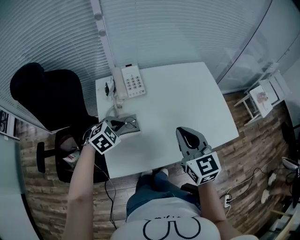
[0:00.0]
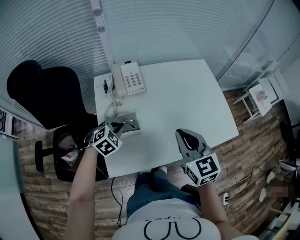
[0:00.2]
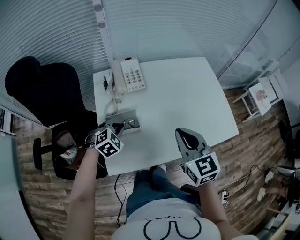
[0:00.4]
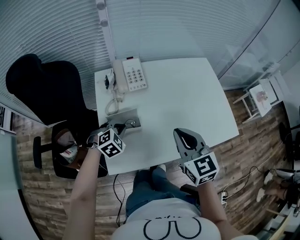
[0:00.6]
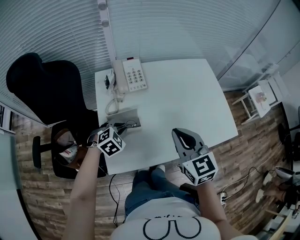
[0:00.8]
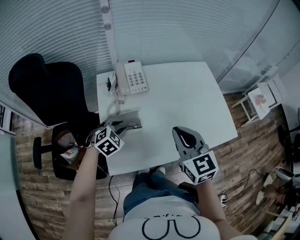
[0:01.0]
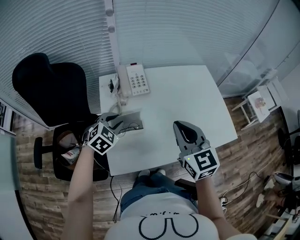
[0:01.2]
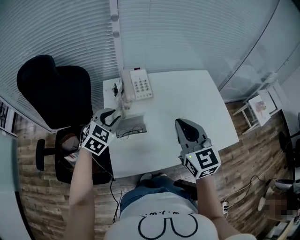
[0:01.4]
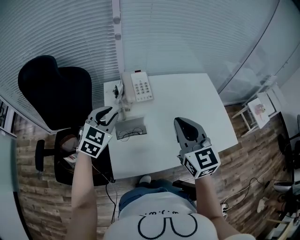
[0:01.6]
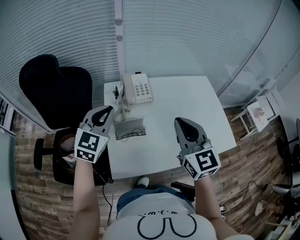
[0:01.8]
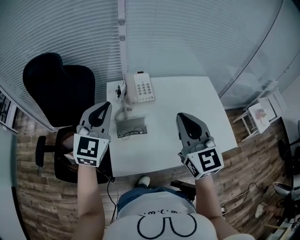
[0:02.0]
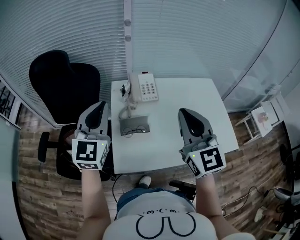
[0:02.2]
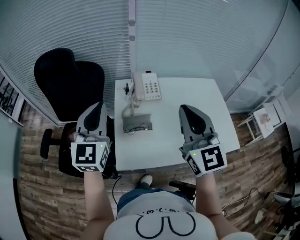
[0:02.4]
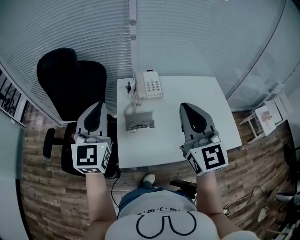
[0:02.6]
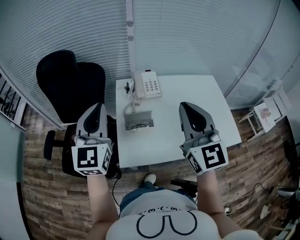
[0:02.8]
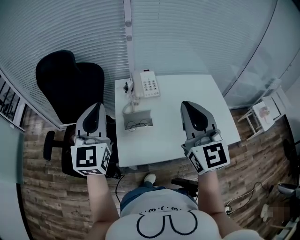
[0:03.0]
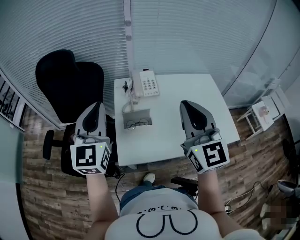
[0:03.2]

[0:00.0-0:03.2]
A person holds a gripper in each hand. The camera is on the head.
0:00.0 to 0:01.6: The left gripper heads upward and to the left, covering some 15 cm, turns by about 30 degrees, and opens up. Meanwhile the right gripper moves to the left and upward, some 10 cm.
0:01.6 to 0:03.2: The left gripper heads upward and backward, covering about 20 cm, points its fingers about 30 degrees further upward, and closes. Meanwhile the right gripper goes roughly 15 cm upward and backward.

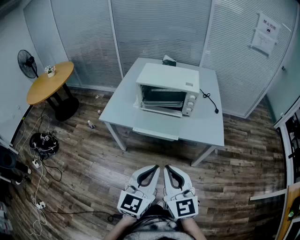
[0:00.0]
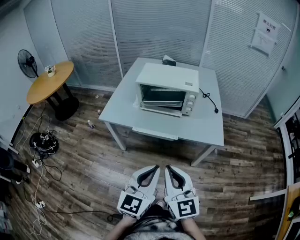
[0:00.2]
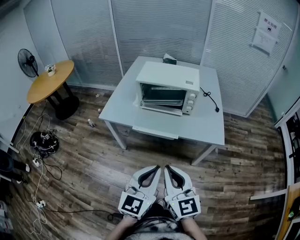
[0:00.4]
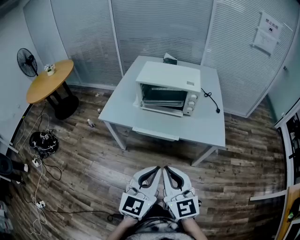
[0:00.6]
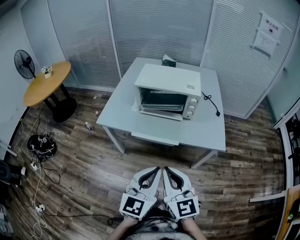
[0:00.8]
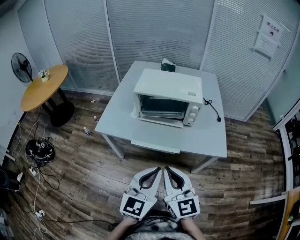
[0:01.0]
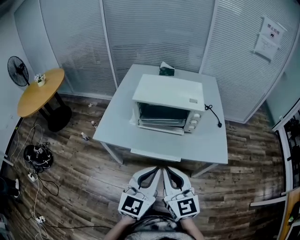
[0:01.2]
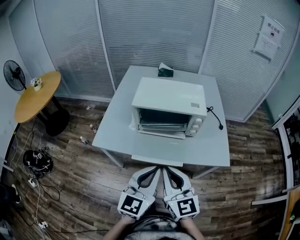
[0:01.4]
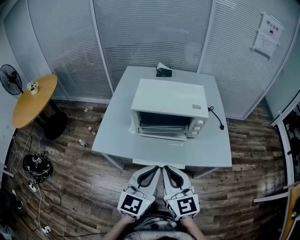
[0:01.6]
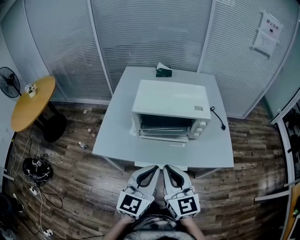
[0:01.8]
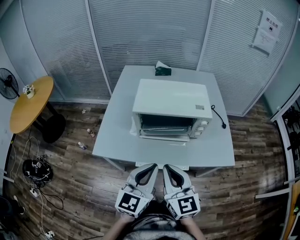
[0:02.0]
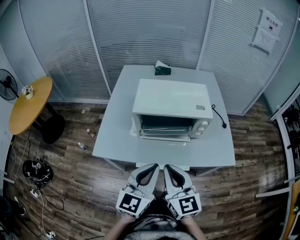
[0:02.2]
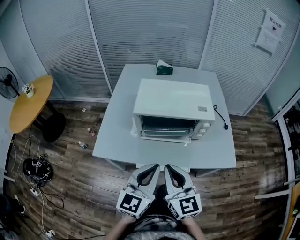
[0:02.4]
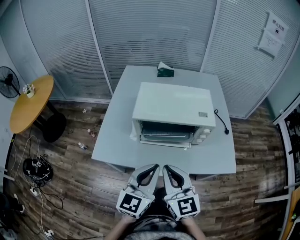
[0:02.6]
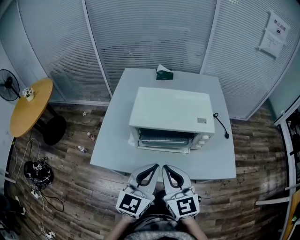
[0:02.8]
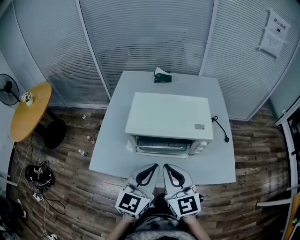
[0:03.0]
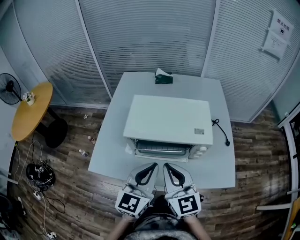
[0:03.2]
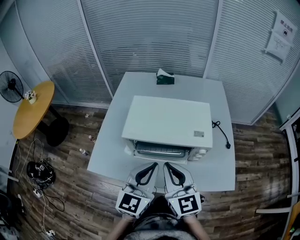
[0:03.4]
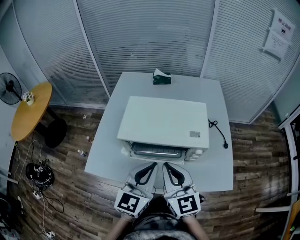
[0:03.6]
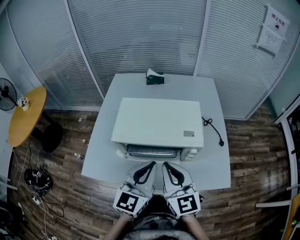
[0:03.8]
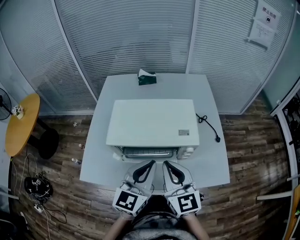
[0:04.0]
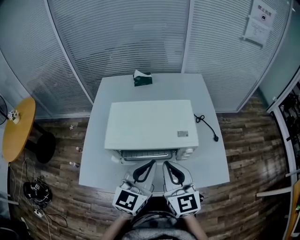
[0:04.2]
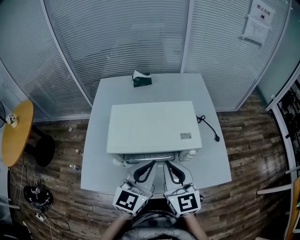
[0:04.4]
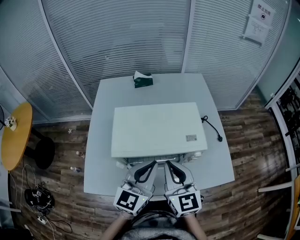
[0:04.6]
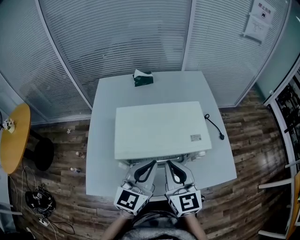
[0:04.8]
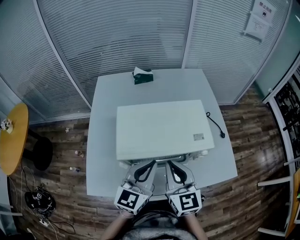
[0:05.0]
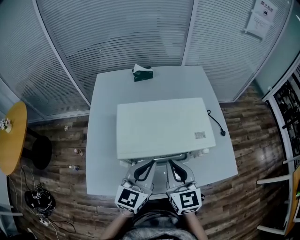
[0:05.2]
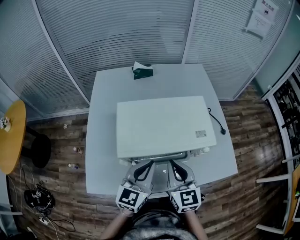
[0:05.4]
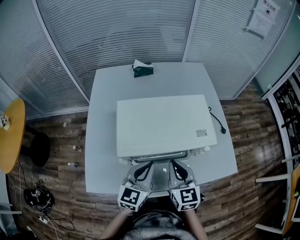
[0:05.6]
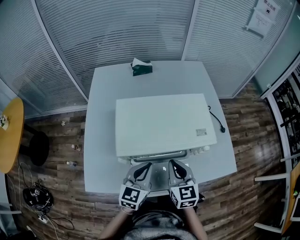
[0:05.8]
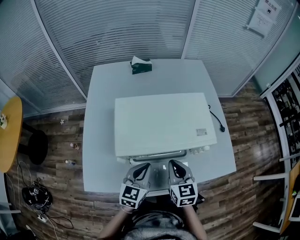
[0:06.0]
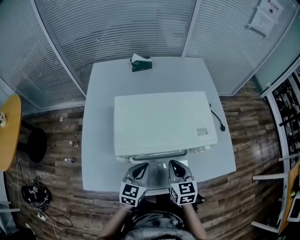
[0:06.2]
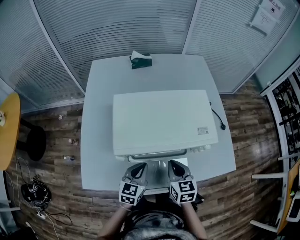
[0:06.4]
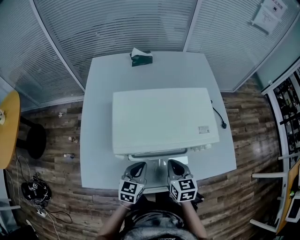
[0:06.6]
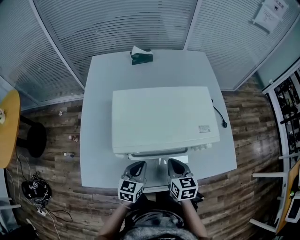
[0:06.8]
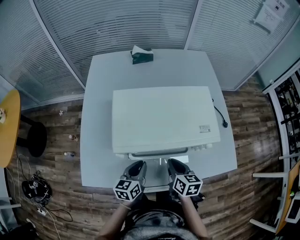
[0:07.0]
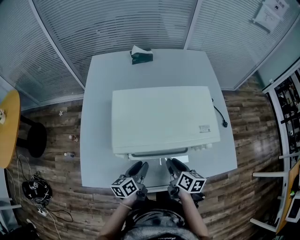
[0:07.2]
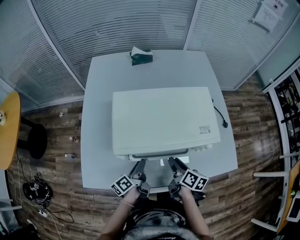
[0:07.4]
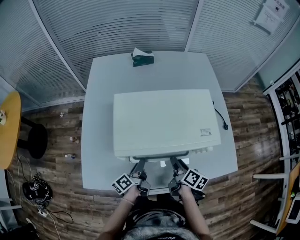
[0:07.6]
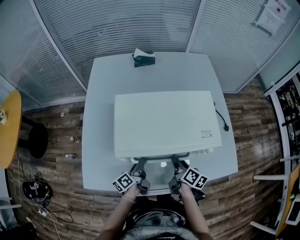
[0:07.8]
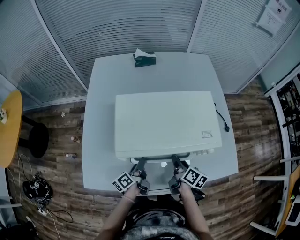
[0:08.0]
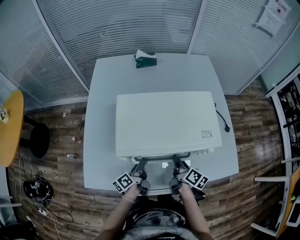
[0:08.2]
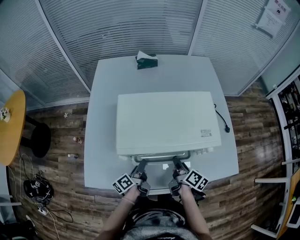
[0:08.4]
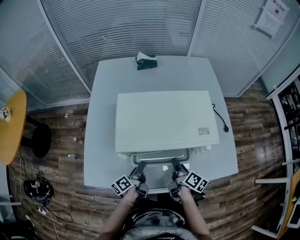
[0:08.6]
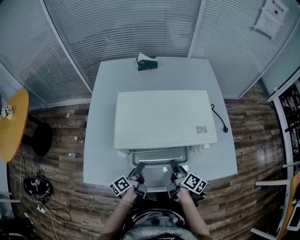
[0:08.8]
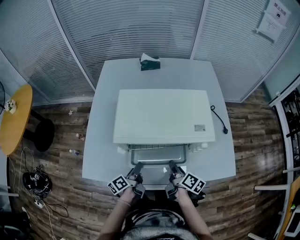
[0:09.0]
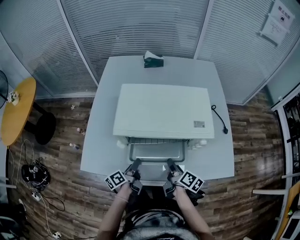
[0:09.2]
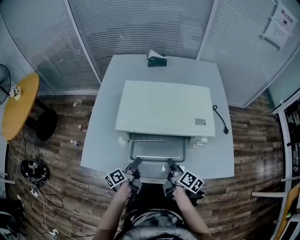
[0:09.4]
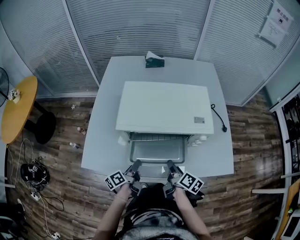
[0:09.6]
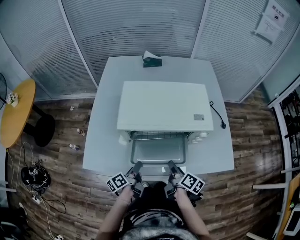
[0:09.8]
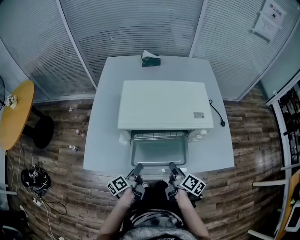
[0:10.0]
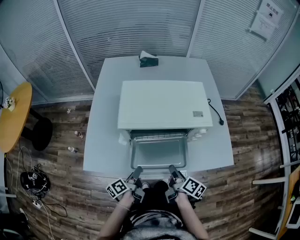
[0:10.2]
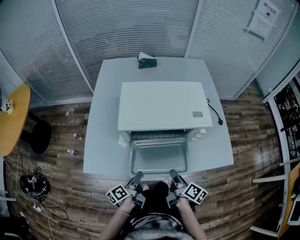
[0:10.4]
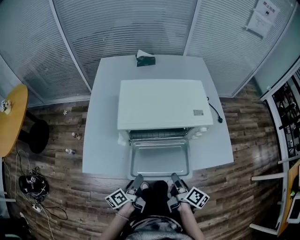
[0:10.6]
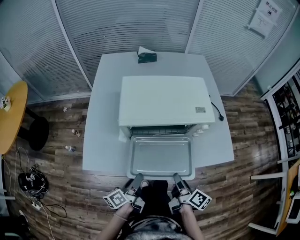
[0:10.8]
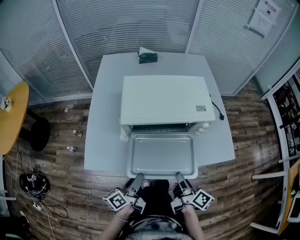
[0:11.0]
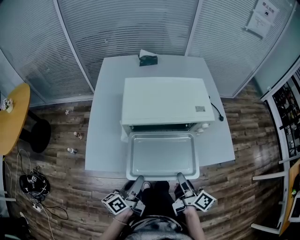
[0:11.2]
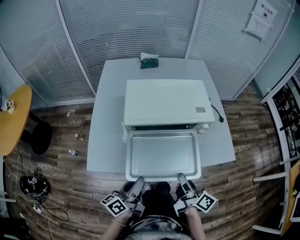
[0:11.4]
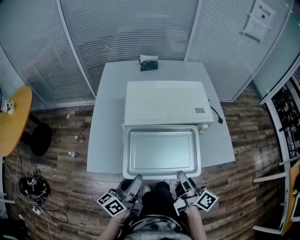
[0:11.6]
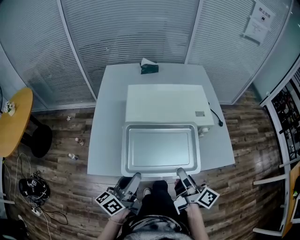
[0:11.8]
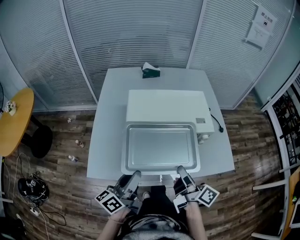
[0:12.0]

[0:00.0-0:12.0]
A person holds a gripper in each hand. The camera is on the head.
0:00.0 to 0:01.6: Both grippers move forward, roughly 20 cm.
0:01.6 to 0:03.0: The grippers both shift forward by approximately 15 cm.
0:03.0 to 0:04.4: The right gripper moves forward and to the right, roughly 10 cm; the left gripper is displaced forward by approximately 10 cm.
0:04.4 to 0:06.0: The right gripper moves downward, approximately 15 cm, and turns by about 20 degrees, while the left gripper is displaced downward and to the left by approximately 20 cm.
0:06.0 to 0:07.6: The two grippers go some 10 cm downward. The left gripper rolls counterclockwise, seen from behind, by roughly 70 degrees, and opens its fingers, while the right gripper twists roughly 50 degrees clockwise, seen from behind, and opens.
0:07.6 to 0:09.0: The left gripper goes approximately 5 cm backward.
0:09.0 to 0:10.4: The grippers both shift backward by approximately 10 cm.
0:10.4 to 0:12.0: The grippers both shift upward by approximately 15 cm. The right gripper turns by about 20 degrees; the left gripper changes its angle by some 30 degrees.

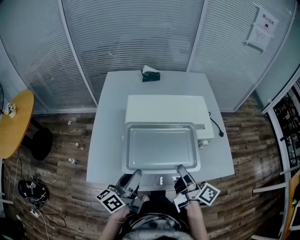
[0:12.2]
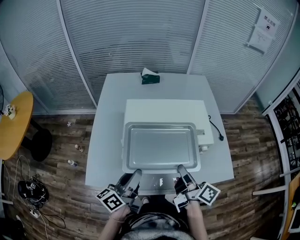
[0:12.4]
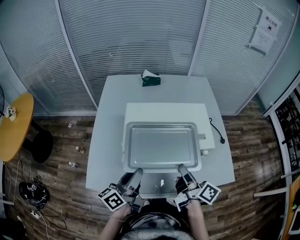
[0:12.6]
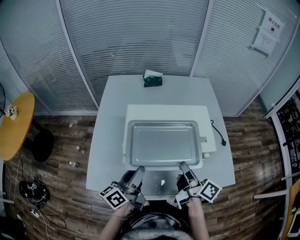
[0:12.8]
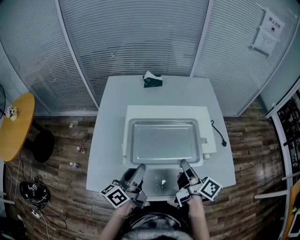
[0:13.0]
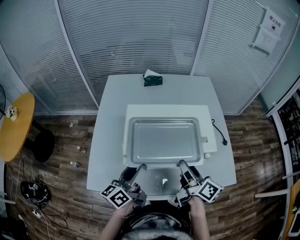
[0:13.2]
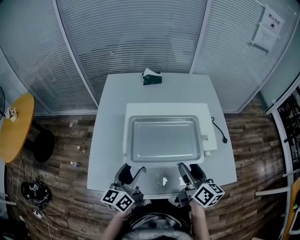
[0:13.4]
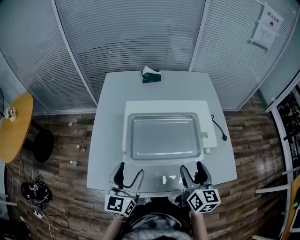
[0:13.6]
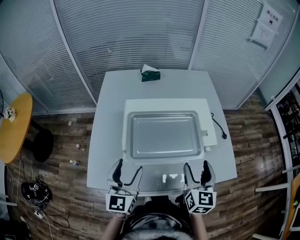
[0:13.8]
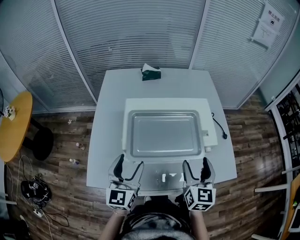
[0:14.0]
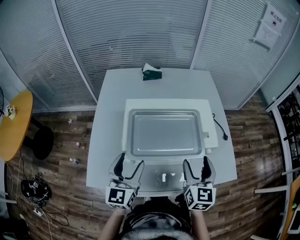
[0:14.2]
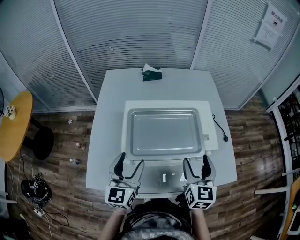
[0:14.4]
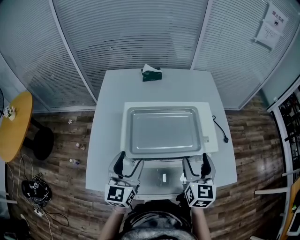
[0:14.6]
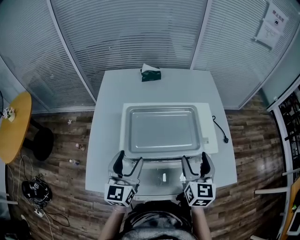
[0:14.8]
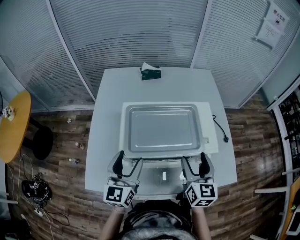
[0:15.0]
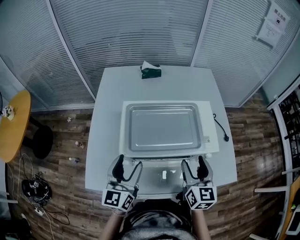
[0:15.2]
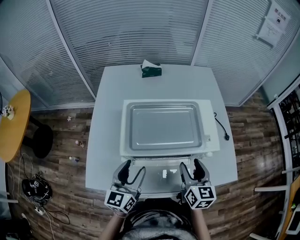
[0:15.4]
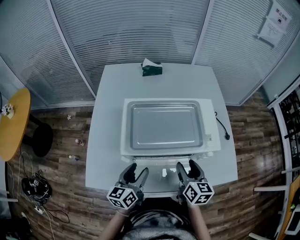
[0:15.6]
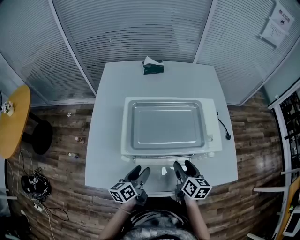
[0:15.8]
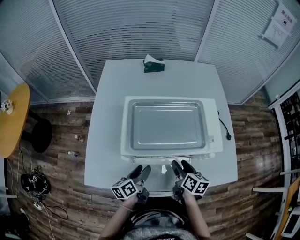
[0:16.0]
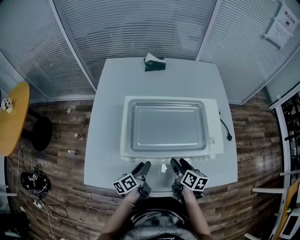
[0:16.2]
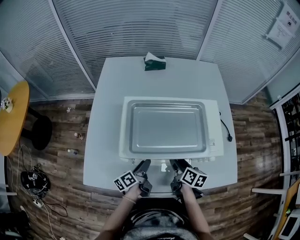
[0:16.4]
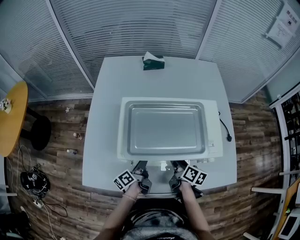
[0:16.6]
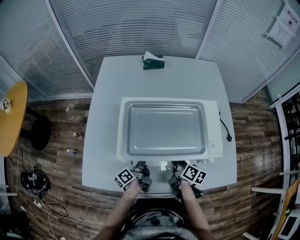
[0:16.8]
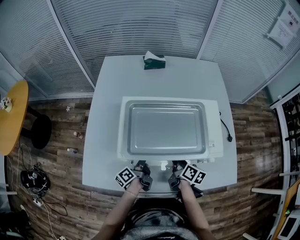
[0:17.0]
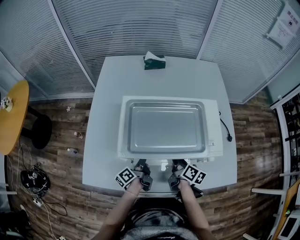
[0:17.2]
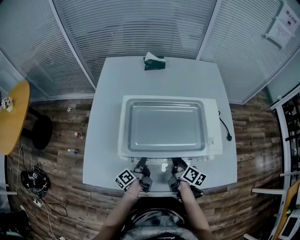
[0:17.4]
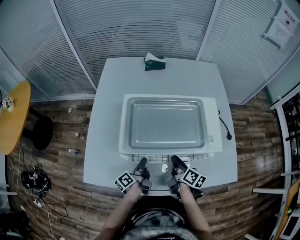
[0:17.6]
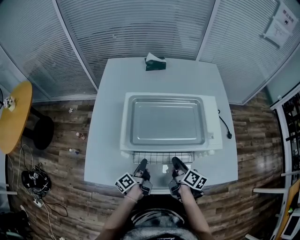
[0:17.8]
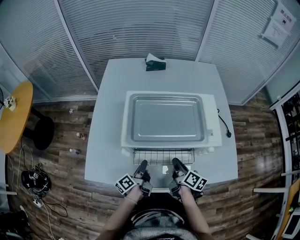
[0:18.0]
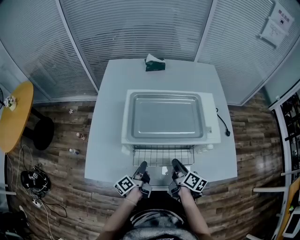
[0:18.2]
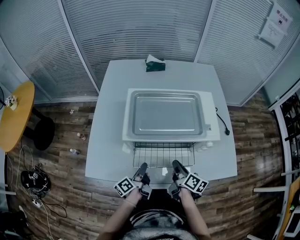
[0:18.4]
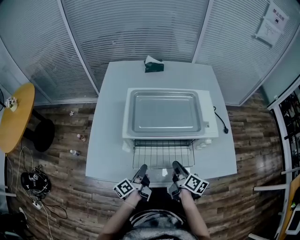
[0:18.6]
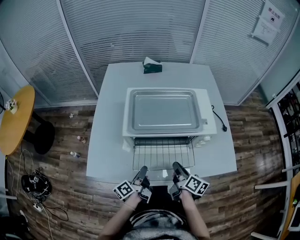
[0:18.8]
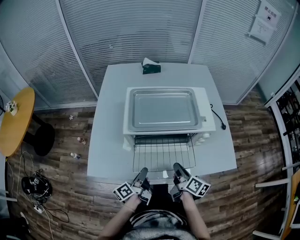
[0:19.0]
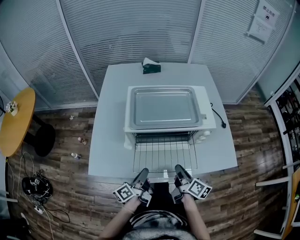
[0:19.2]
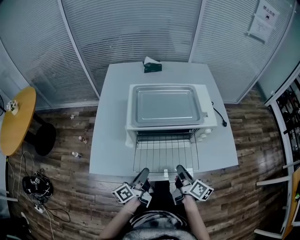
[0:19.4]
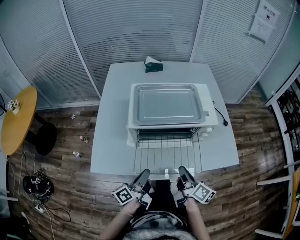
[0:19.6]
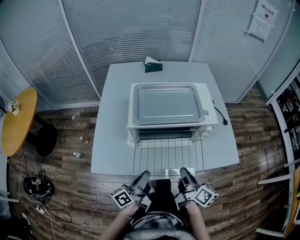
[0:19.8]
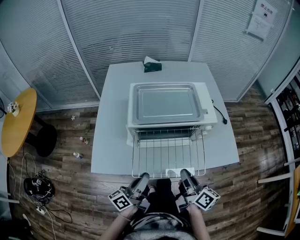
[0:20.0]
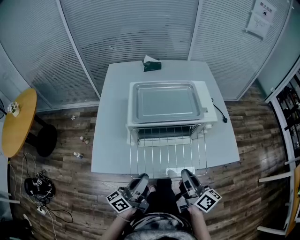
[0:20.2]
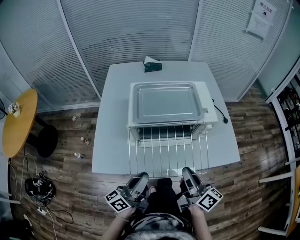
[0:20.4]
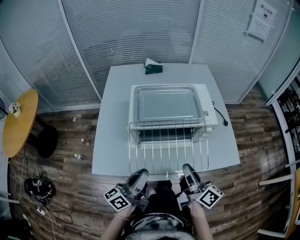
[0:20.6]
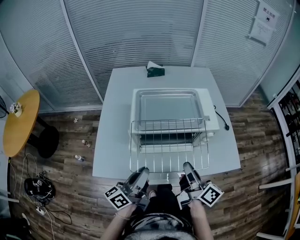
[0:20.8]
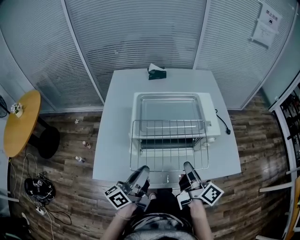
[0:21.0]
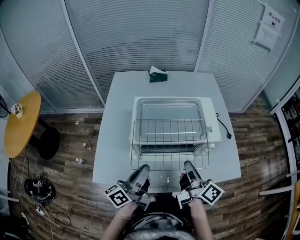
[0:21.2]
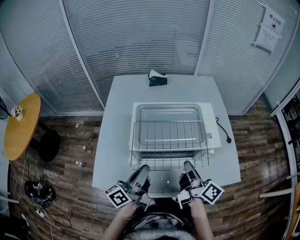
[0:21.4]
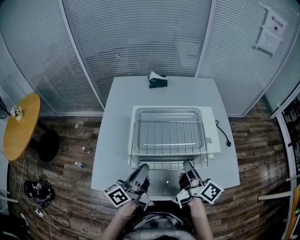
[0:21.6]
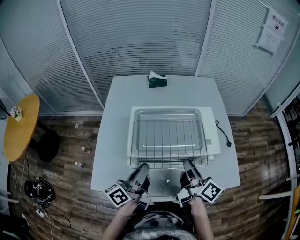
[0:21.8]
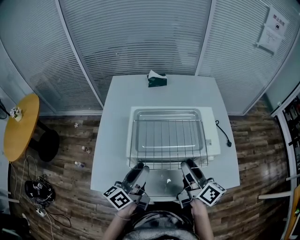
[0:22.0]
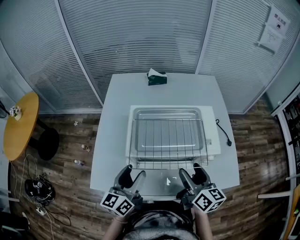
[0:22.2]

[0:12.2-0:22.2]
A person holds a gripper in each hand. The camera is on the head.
0:12.2 to 0:13.6: The right gripper moves some 5 cm, rolls counterclockwise, seen from behind, by some 50 degrees, and opens up. The left gripper shifts approximately 5 cm forward, twists about 50 degrees clockwise, seen from behind, and opens up.
0:13.6 to 0:15.0: The two grippers go approximately 5 cm forward.
0:15.0 to 0:16.4: The grippers both shift downward by approximately 20 cm. The right gripper swivels approximately 40 degrees. The left gripper rolls counterclockwise, seen from behind, by about 70 degrees.
0:16.4 to 0:18.0: The left gripper closes its fingers. Meanwhile the right gripper closes.
0:18.0 to 0:19.4: Both grippers travel together backward and upward, some 15 cm.
0:19.4 to 0:20.8: The two grippers go approximately 10 cm upward.
0:20.8 to 0:22.2: The grippers both shift forward by about 10 cm. The left gripper turns by about 30 degrees, and opens up, while the right gripper swivels roughly 30 degrees, and opens up.
